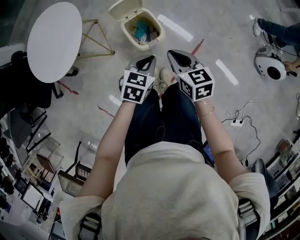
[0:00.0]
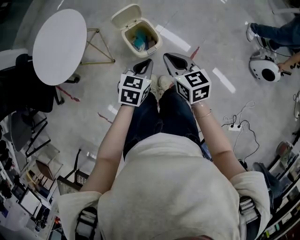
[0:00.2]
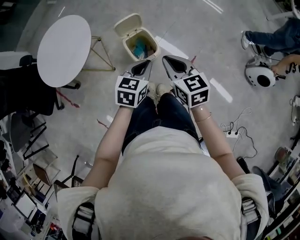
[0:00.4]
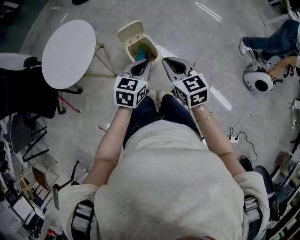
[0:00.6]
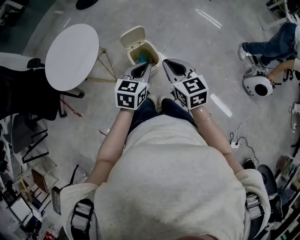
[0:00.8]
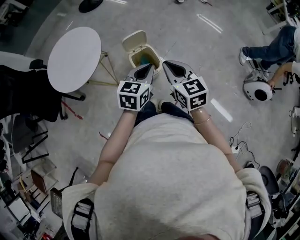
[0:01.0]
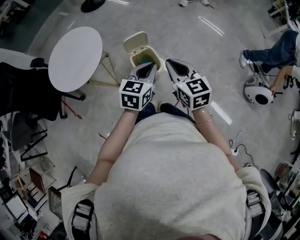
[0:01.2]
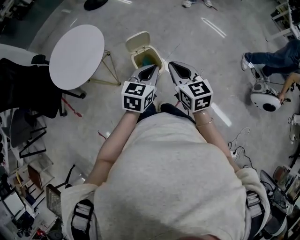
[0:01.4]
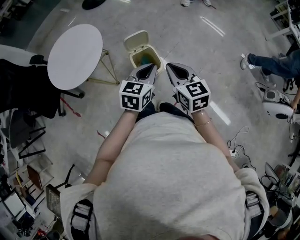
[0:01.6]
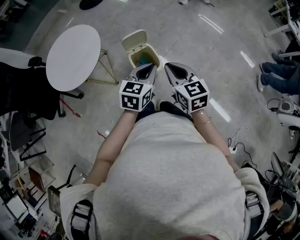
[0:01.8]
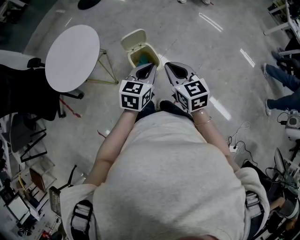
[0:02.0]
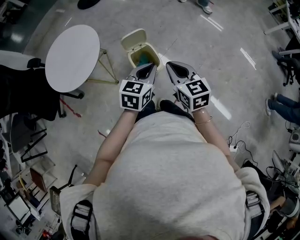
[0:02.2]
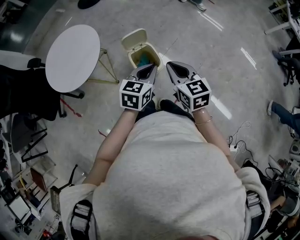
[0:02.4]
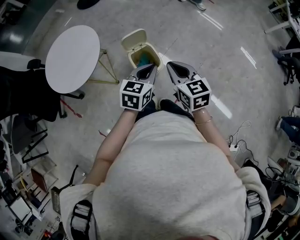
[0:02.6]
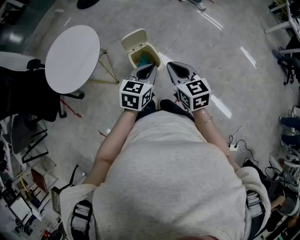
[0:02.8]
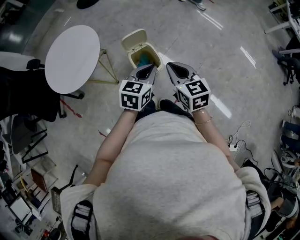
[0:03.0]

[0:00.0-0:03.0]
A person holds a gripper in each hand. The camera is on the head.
0:00.0 to 0:01.6: Both grippers move upward, some 15 cm. The left gripper turns by roughly 20 degrees.
0:01.6 to 0:03.0: The grippers make only small movements.

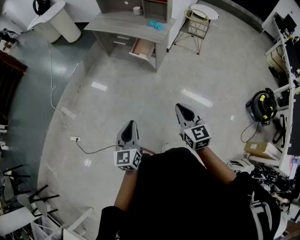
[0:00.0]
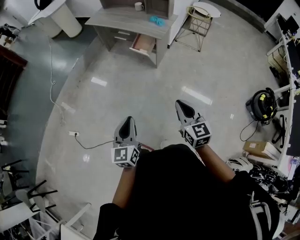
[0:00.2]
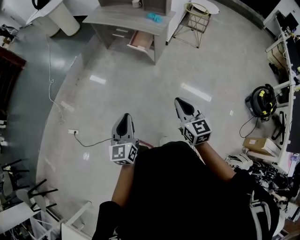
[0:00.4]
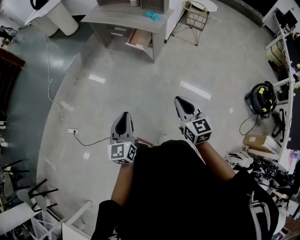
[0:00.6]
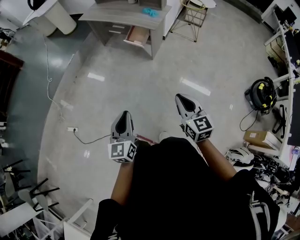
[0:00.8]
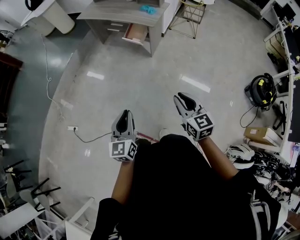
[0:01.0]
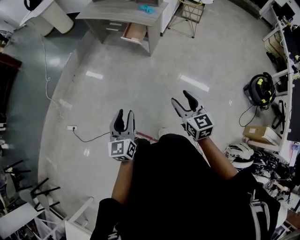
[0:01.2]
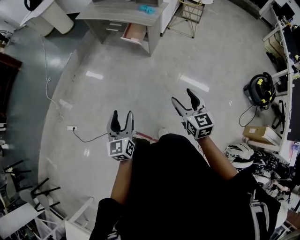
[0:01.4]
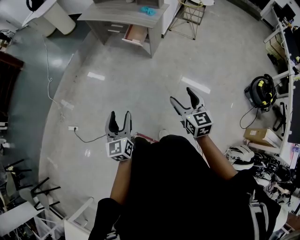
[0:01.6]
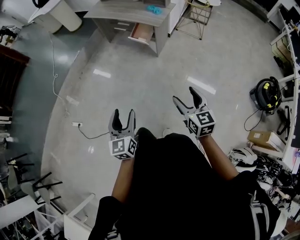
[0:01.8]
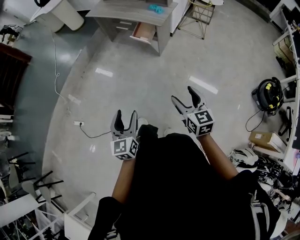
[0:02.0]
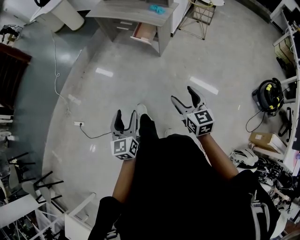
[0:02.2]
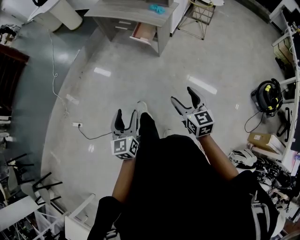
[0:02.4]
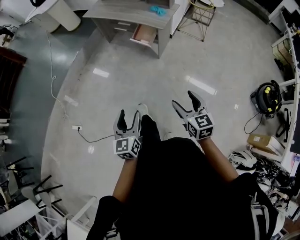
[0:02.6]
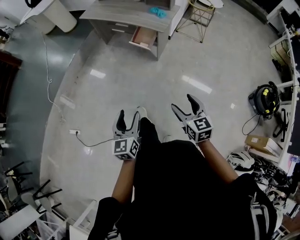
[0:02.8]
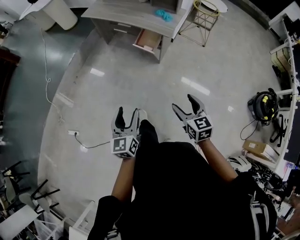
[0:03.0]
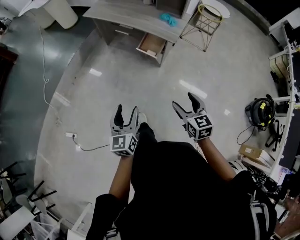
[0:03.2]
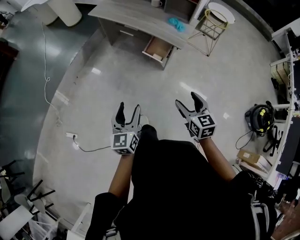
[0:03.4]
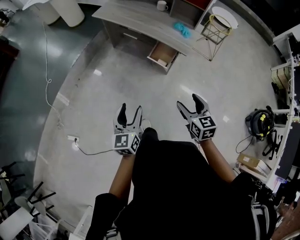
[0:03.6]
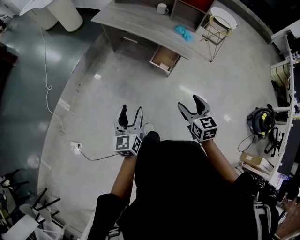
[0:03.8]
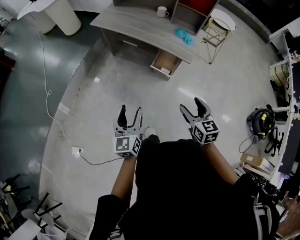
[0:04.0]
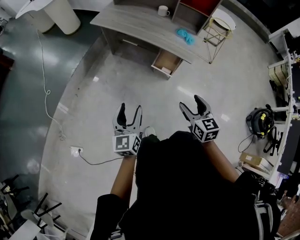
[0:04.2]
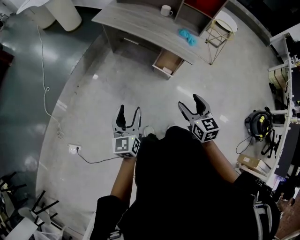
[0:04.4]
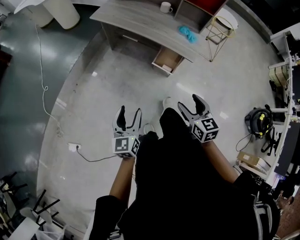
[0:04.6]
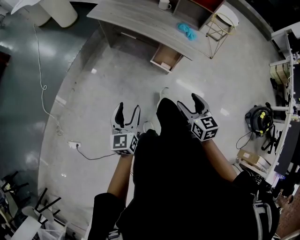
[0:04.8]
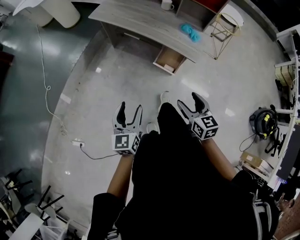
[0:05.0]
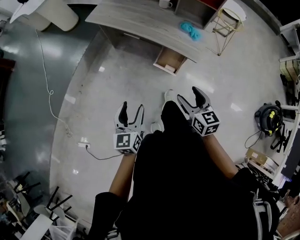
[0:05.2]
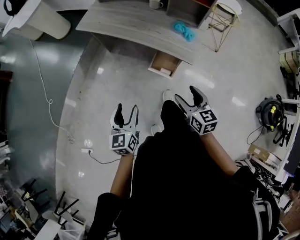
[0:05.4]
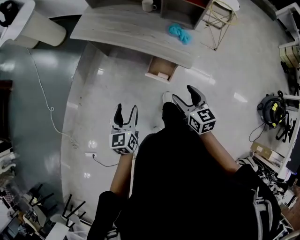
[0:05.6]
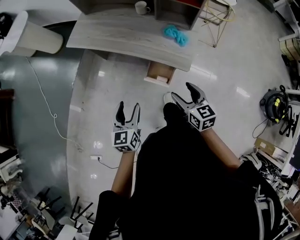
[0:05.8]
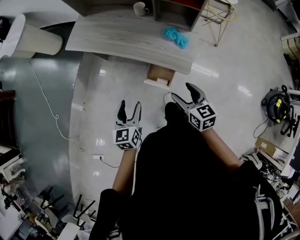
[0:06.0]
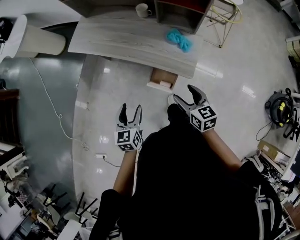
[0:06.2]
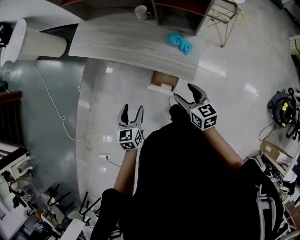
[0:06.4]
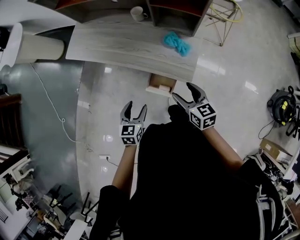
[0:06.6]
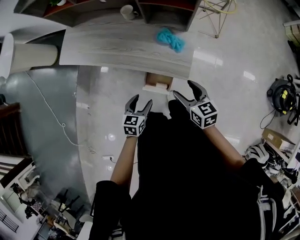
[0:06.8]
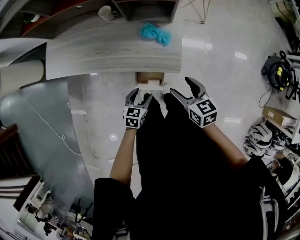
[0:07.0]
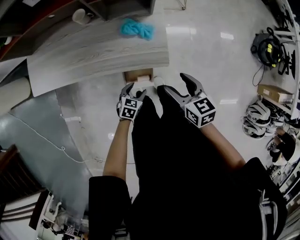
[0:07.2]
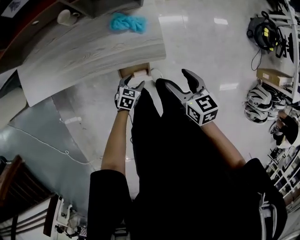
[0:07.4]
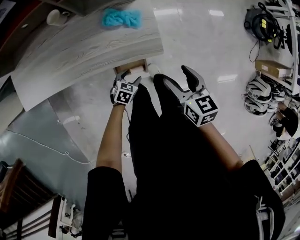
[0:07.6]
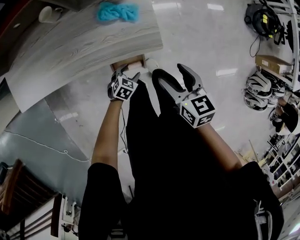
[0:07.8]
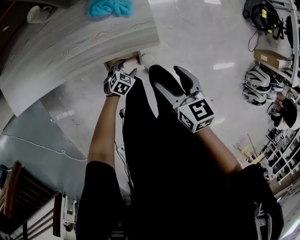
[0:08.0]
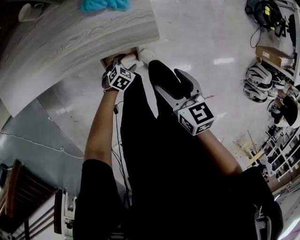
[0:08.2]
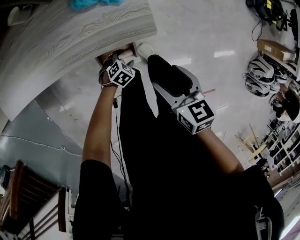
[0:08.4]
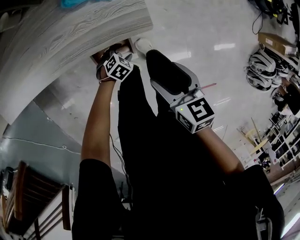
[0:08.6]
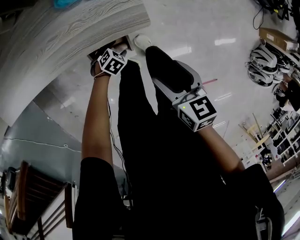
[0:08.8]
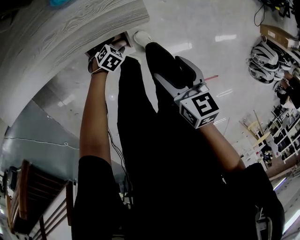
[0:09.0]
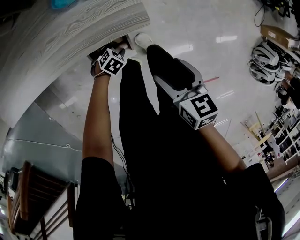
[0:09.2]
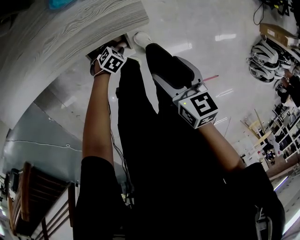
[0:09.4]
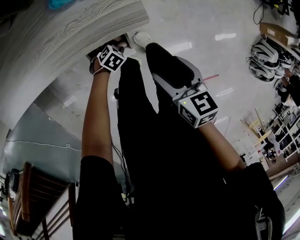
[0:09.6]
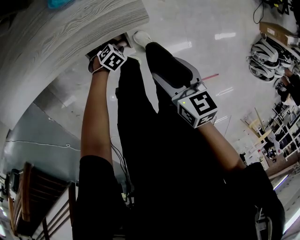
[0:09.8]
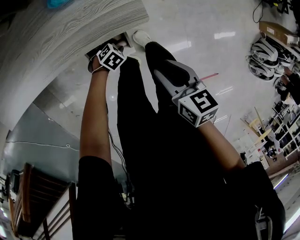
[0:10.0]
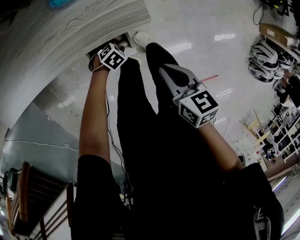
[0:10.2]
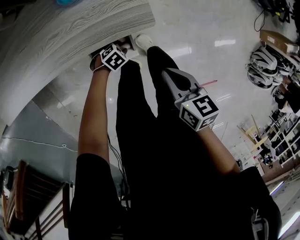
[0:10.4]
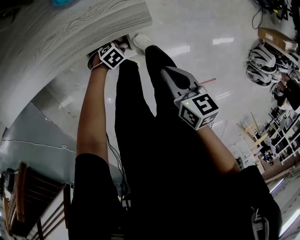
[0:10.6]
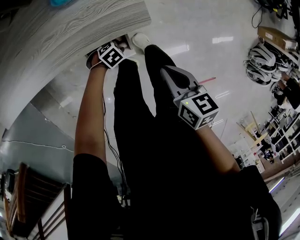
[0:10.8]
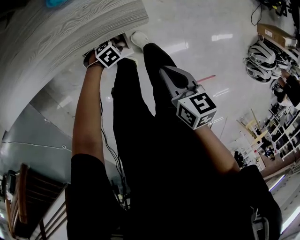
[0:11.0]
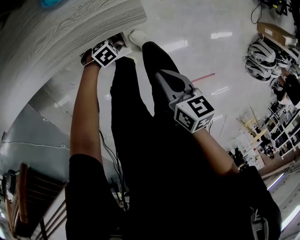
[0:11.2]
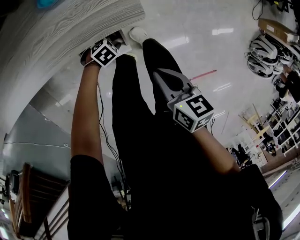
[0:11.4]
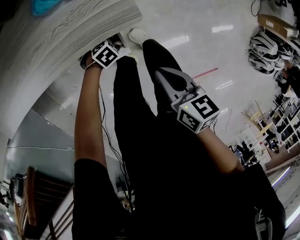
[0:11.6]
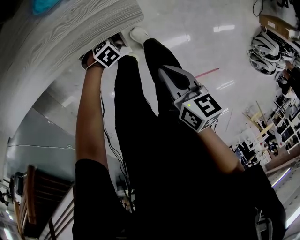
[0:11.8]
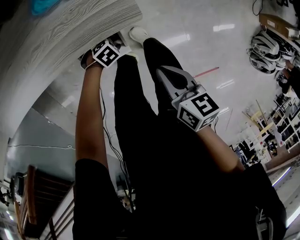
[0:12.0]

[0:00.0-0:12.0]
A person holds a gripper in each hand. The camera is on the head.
0:00.0 to 0:01.6: The right gripper shifts roughly 10 cm backward and to the right, and opens. Meanwhile the left gripper changes place by roughly 5 cm, and opens up.
0:01.6 to 0:03.0: The left gripper moves forward, about 20 cm. The right gripper travels forward and to the left by about 20 cm.
0:03.0 to 0:04.4: Both grippers move forward and to the left, roughly 30 cm.
0:04.4 to 0:06.0: The grippers both shift forward and to the right by approximately 30 cm. The left gripper rotates some 20 degrees.
0:06.0 to 0:07.6: The right gripper shifts by some 15 cm, and changes its angle by some 30 degrees, while the left gripper shifts some 35 cm downward, and swivels roughly 70 degrees.
0:07.6 to 0:09.0: The grippers both shift downward by approximately 15 cm. The left gripper swivels about 30 degrees.
0:09.0 to 0:10.4: The right gripper closes. Meanwhile the left gripper closes.
0:10.4 to 0:12.0: The grippers make only small movements.

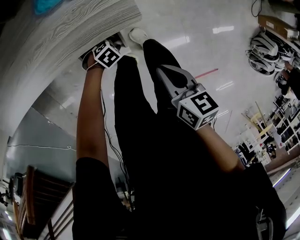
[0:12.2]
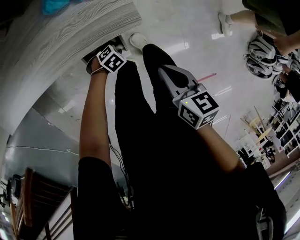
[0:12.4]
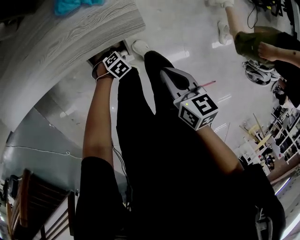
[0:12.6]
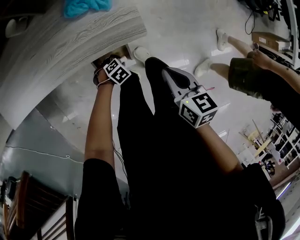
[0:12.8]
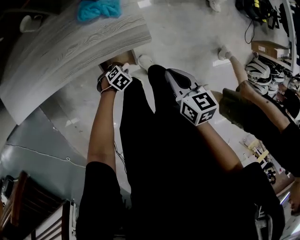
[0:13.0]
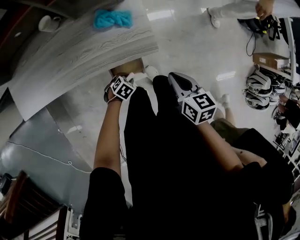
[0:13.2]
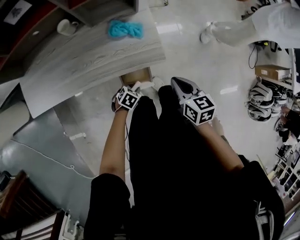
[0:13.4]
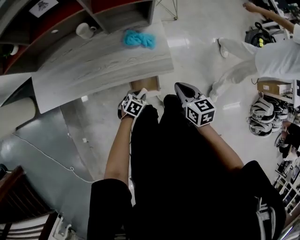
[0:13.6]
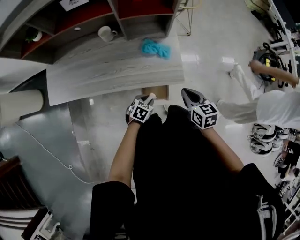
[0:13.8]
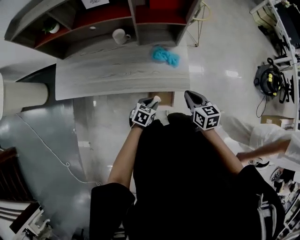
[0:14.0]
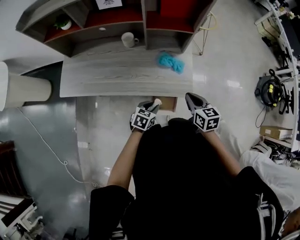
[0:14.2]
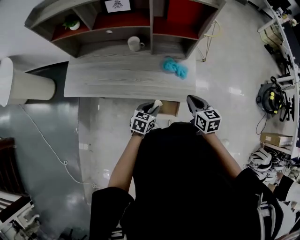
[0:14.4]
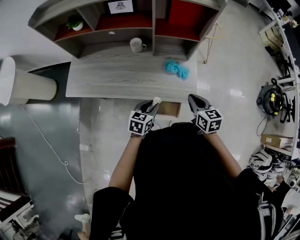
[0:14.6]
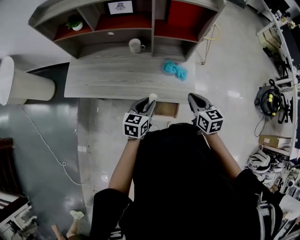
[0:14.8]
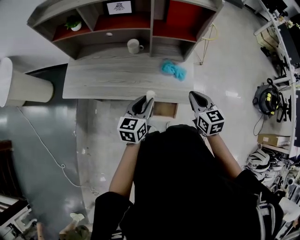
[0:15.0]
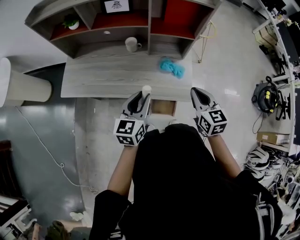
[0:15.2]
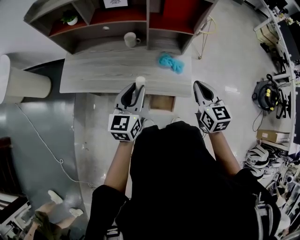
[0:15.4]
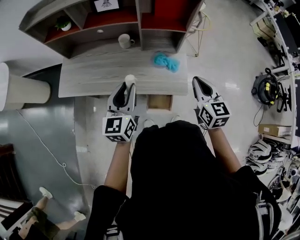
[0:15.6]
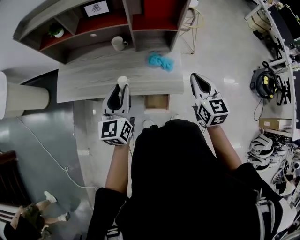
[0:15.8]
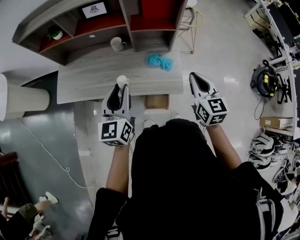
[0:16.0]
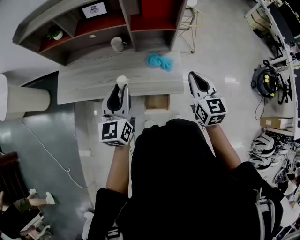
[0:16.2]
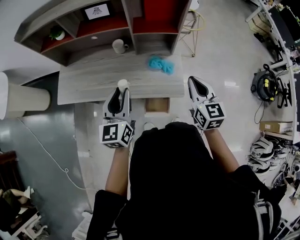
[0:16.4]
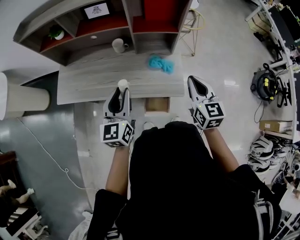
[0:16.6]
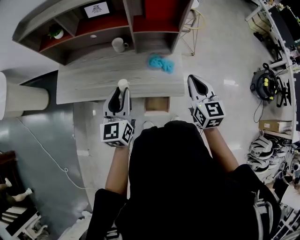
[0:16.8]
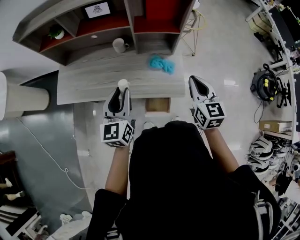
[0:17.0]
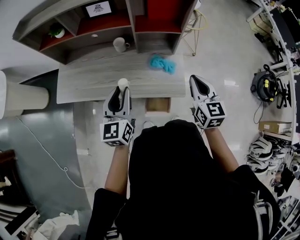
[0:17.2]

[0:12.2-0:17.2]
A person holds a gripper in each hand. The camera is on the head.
0:12.2 to 0:13.8: The left gripper travels upward by roughly 25 cm, and turns by approximately 40 degrees, while the right gripper travels upward by about 15 cm, and changes its angle by about 30 degrees.
0:13.8 to 0:15.6: The right gripper goes approximately 15 cm upward, and changes its angle by roughly 20 degrees. The left gripper goes approximately 35 cm upward, and tilts its fingers roughly 50 degrees upward.
0:15.6 to 0:17.2: The grippers move only a little.

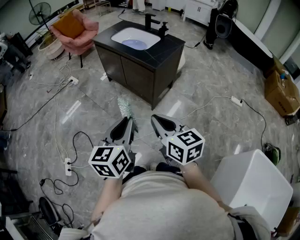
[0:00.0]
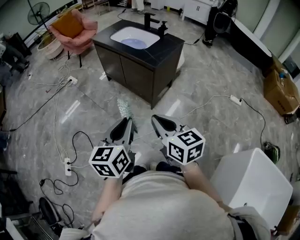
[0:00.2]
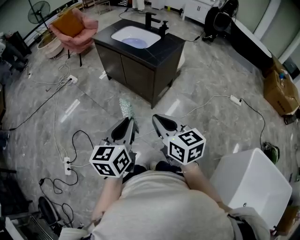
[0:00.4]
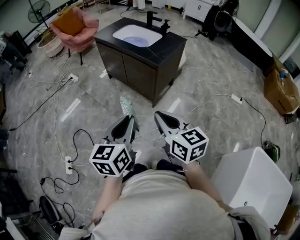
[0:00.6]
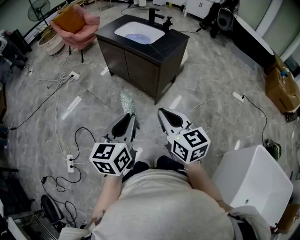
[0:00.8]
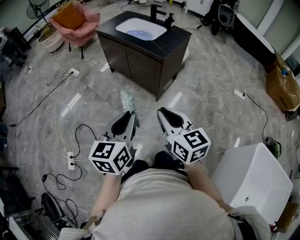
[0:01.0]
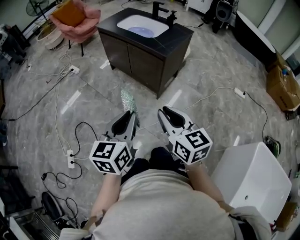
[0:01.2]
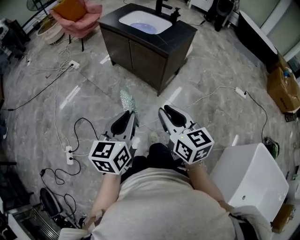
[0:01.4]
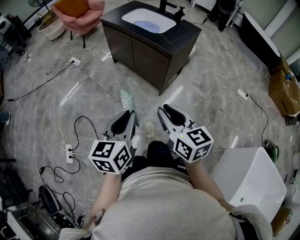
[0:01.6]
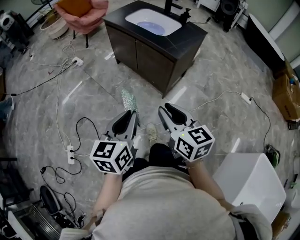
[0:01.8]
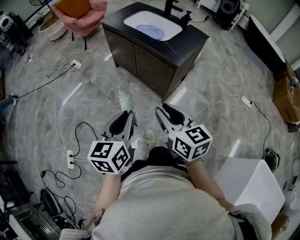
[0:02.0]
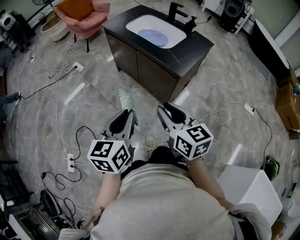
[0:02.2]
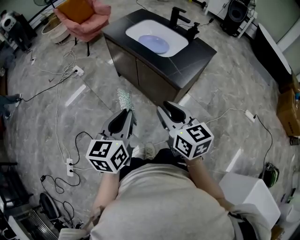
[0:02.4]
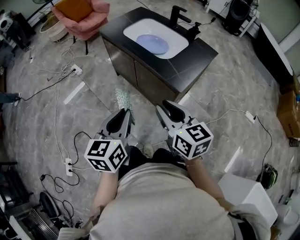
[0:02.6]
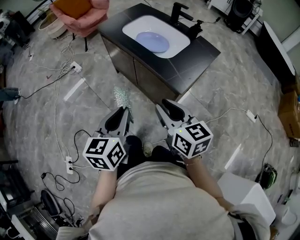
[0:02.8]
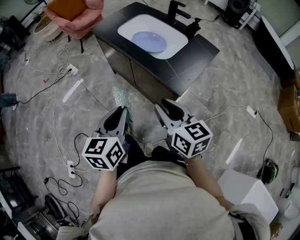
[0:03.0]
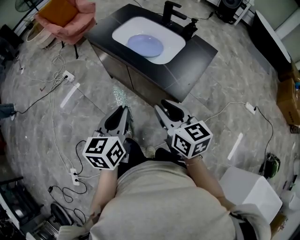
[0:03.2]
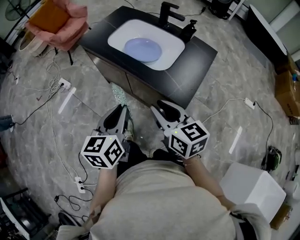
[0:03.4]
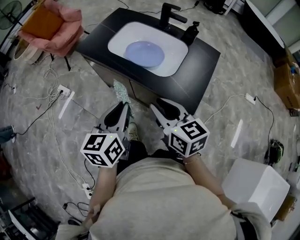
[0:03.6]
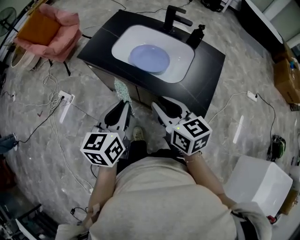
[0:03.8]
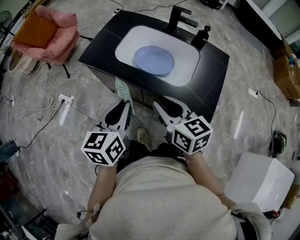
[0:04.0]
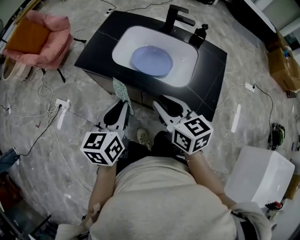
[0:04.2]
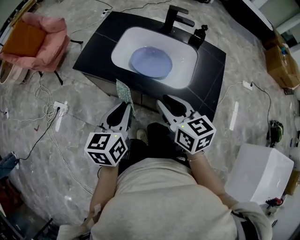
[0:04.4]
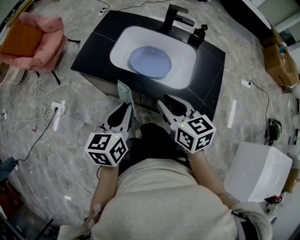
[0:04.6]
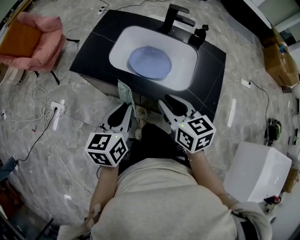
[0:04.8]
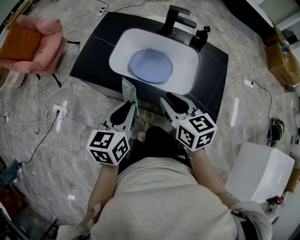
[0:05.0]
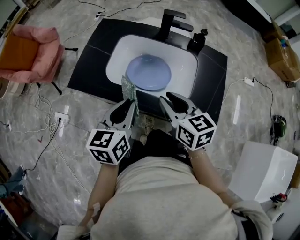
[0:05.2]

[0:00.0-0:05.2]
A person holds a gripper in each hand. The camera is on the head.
0:00.0 to 0:01.8: The right gripper goes approximately 10 cm forward and to the left, and opens; the left gripper is displaced to the left and forward by approximately 10 cm.
0:01.8 to 0:03.4: Both grippers move forward, roughly 35 cm.
0:03.4 to 0:05.2: Both grippers travel together forward, roughly 25 cm. The left gripper swivels approximately 20 degrees. Meanwhile the right gripper changes its angle by about 20 degrees.
